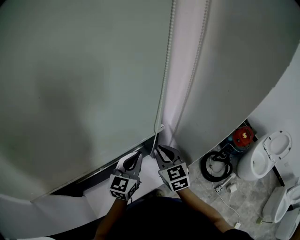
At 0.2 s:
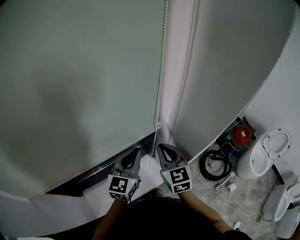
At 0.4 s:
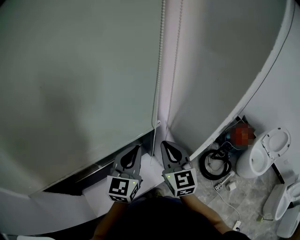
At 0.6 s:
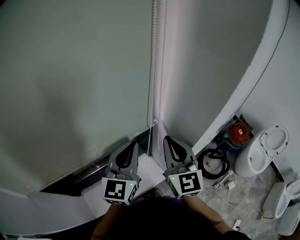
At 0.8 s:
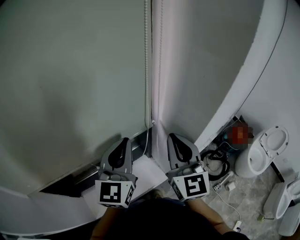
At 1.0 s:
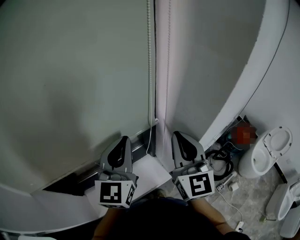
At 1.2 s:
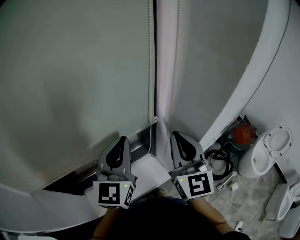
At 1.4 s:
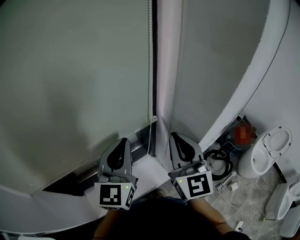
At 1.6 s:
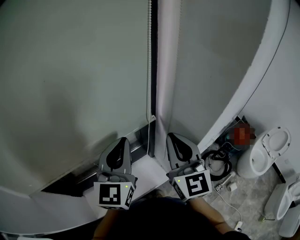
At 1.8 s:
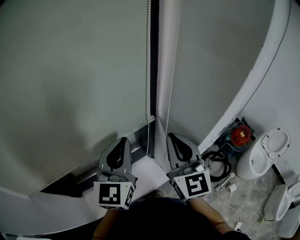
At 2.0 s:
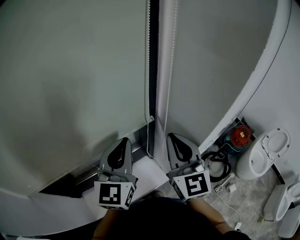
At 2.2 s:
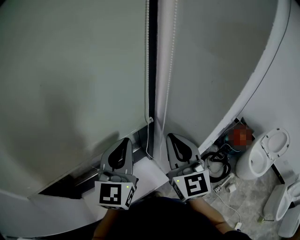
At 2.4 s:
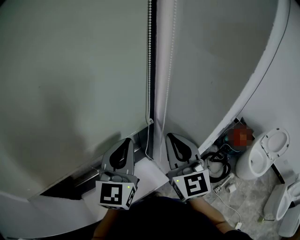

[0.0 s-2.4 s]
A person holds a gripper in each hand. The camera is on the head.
0.0 to 1.2 s: The grippers both shift upward by approximately 20 cm. The right gripper turns by approximately 30 degrees. Meanwhile the left gripper rotates about 20 degrees.
1.2 to 2.4 s: The grippers stay close to where they were, moving slightly.

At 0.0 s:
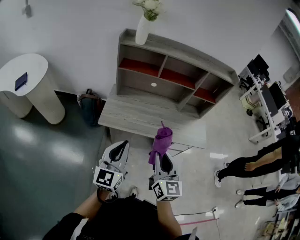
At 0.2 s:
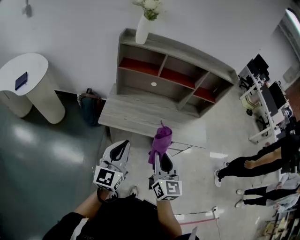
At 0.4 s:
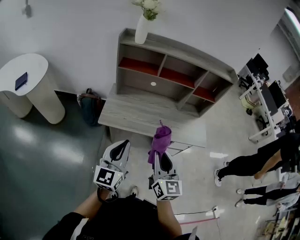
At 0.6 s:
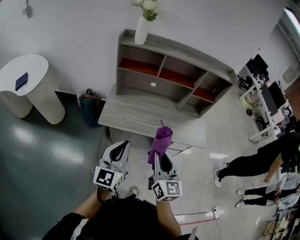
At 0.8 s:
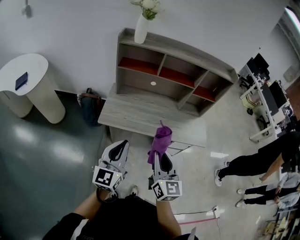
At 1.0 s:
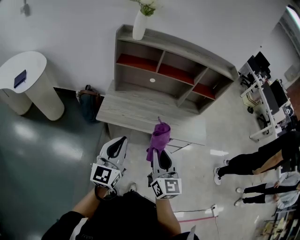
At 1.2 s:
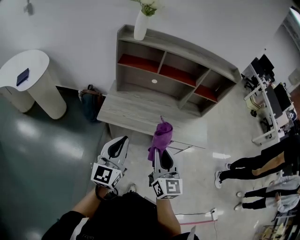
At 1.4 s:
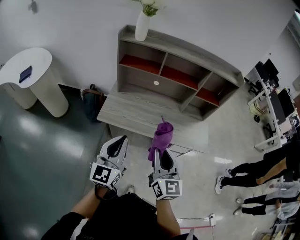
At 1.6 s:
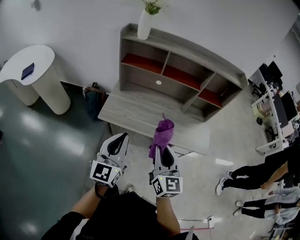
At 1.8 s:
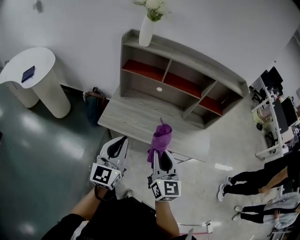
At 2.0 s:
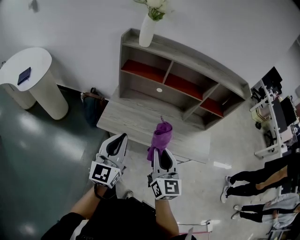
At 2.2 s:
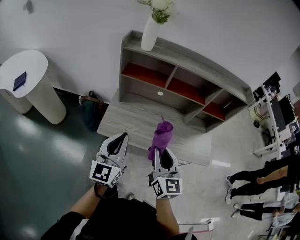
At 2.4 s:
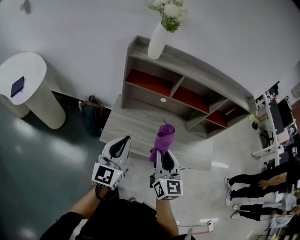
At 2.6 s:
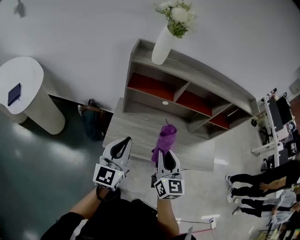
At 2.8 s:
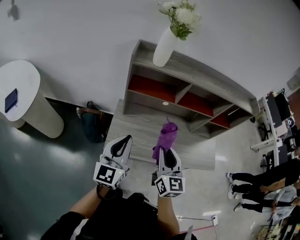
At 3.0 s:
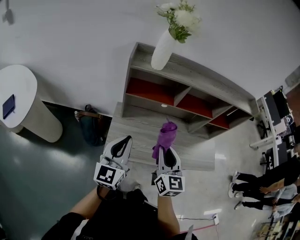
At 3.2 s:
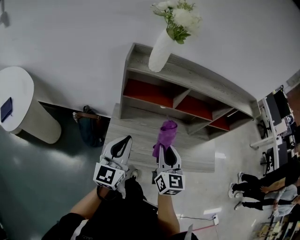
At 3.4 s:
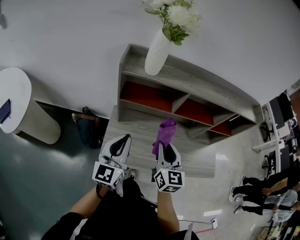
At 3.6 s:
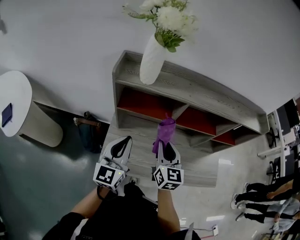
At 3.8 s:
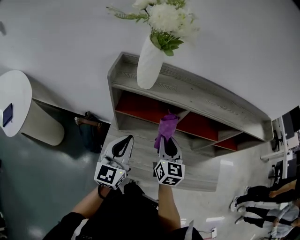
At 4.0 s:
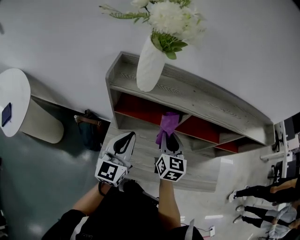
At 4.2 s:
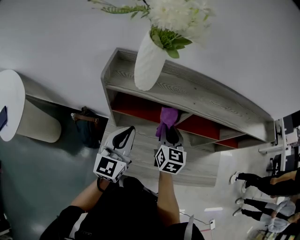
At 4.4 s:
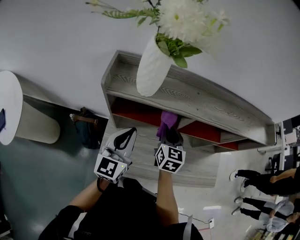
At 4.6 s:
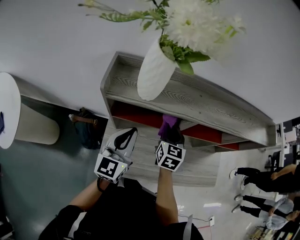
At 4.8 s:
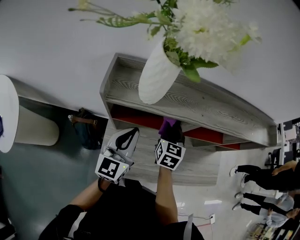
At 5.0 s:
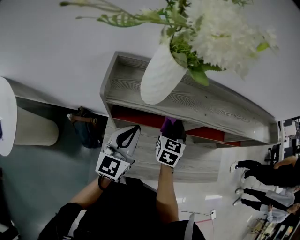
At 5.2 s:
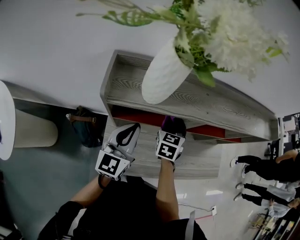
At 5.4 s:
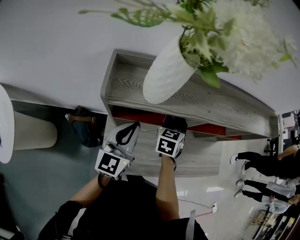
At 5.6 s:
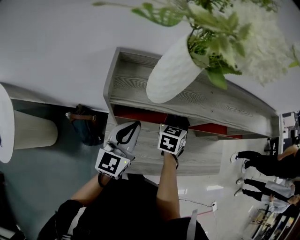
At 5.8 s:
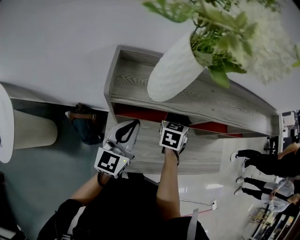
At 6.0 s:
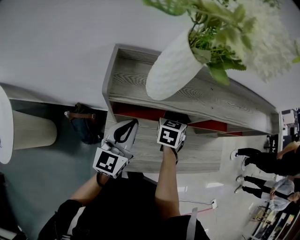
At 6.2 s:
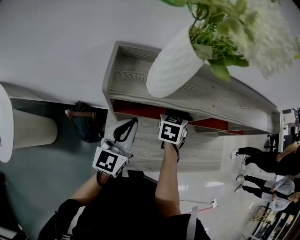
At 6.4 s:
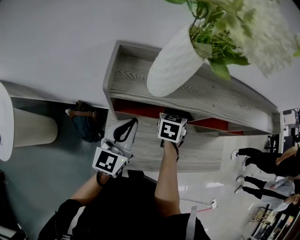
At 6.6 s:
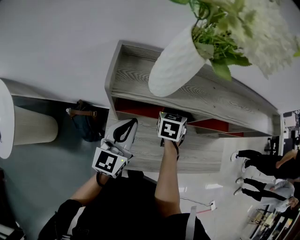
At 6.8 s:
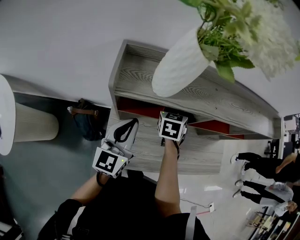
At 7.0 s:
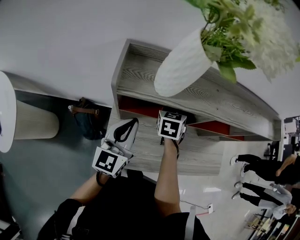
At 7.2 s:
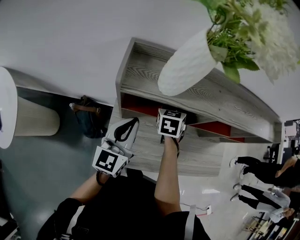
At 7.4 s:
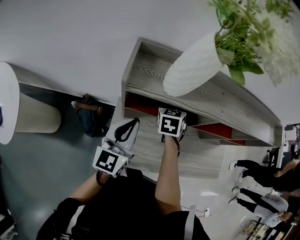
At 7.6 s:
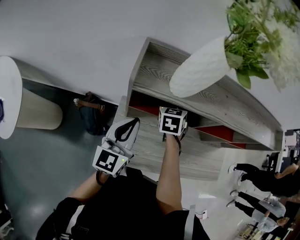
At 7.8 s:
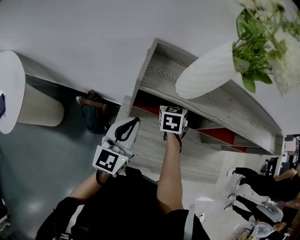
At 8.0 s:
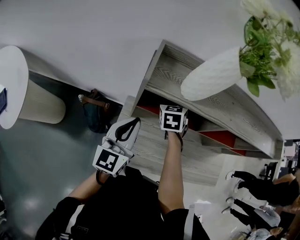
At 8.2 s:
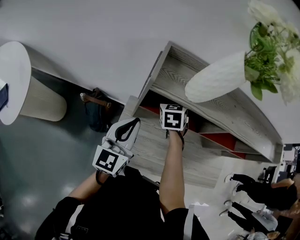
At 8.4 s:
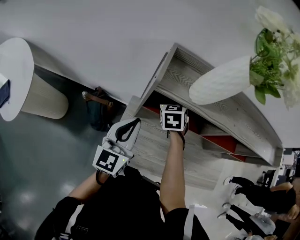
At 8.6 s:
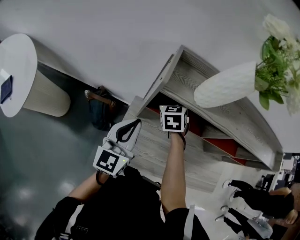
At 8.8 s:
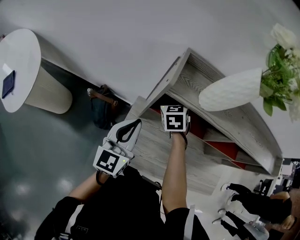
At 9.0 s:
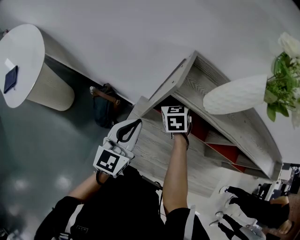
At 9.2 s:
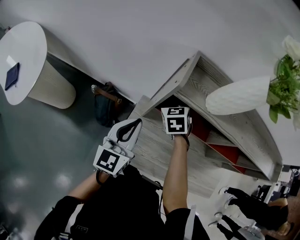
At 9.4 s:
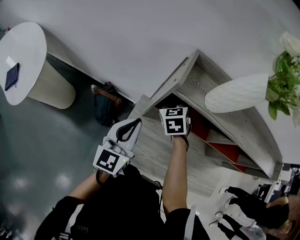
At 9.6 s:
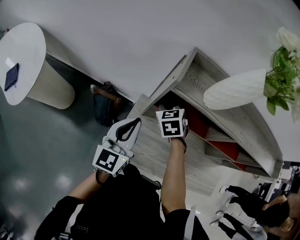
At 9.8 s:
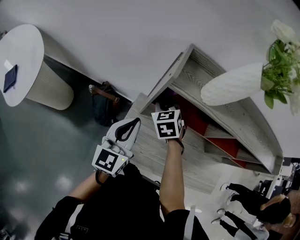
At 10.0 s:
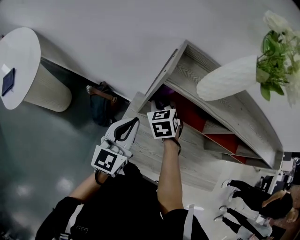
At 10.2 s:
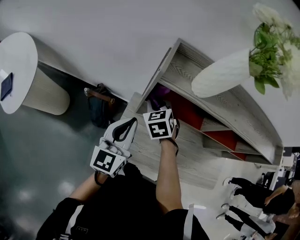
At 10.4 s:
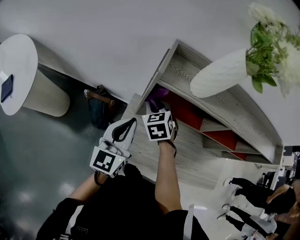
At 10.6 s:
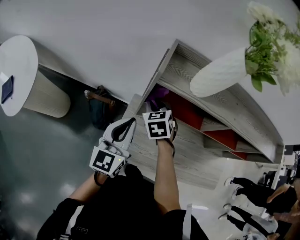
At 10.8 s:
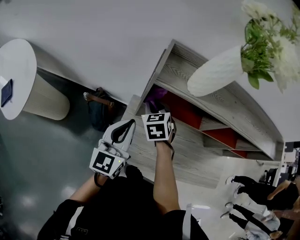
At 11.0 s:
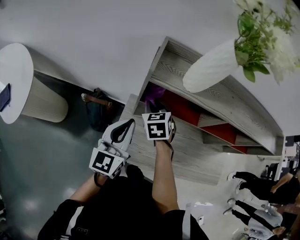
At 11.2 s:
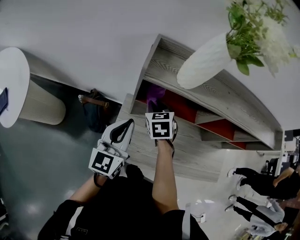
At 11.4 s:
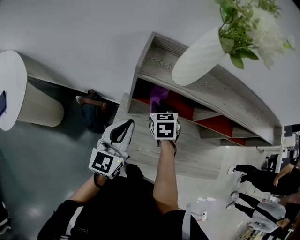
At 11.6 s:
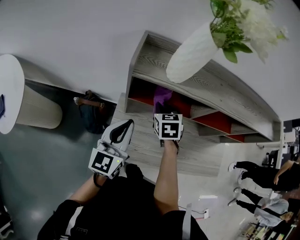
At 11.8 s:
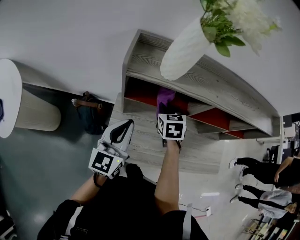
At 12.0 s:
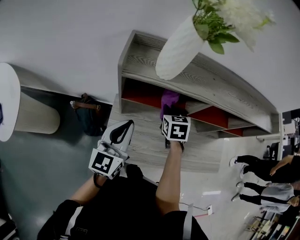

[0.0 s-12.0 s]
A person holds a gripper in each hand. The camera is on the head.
0.0 to 1.6 s: The left gripper moves approximately 5 cm, while the right gripper changes place by roughly 5 cm.
1.6 to 3.0 s: The grippers both shift forward and to the left by about 25 cm.
3.0 to 4.4 s: Both grippers move forward, some 25 cm.
4.4 to 6.0 s: The right gripper travels forward by approximately 5 cm, and swivels roughly 30 degrees. Meanwhile the left gripper changes place by approximately 5 cm.
6.0 to 7.6 s: The right gripper is displaced to the left by about 10 cm.
7.6 to 9.0 s: The left gripper heads to the left, covering roughly 5 cm. Meanwhile the right gripper travels to the left by some 15 cm, and changes its angle by some 30 degrees.
9.0 to 10.4 s: The right gripper is displaced backward by about 5 cm.
10.4 to 12.0 s: The right gripper goes about 20 cm to the right, and turns by some 30 degrees. Meanwhile the left gripper travels to the right by roughly 5 cm.

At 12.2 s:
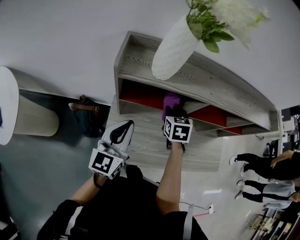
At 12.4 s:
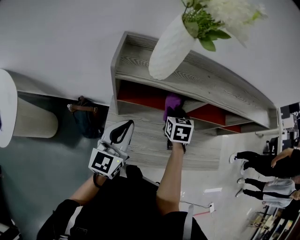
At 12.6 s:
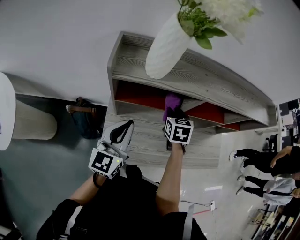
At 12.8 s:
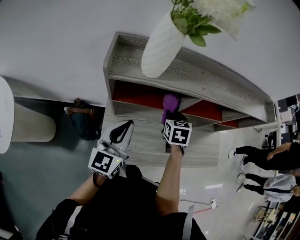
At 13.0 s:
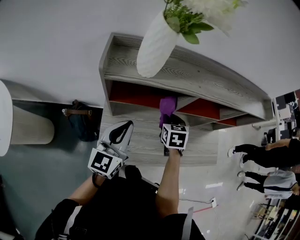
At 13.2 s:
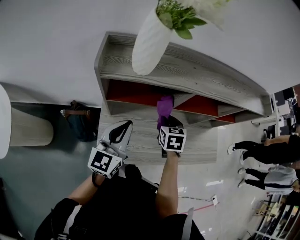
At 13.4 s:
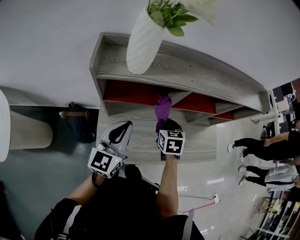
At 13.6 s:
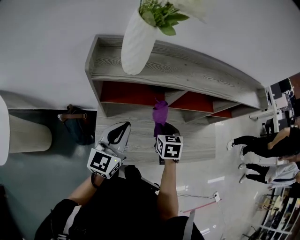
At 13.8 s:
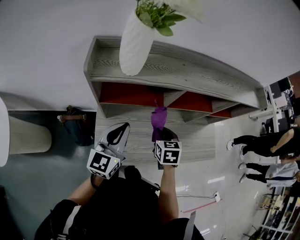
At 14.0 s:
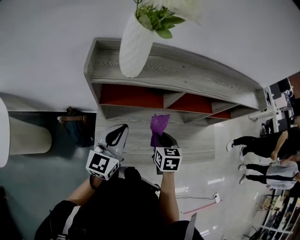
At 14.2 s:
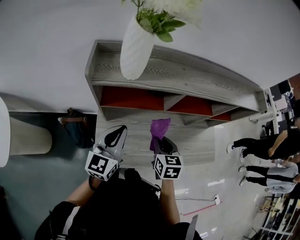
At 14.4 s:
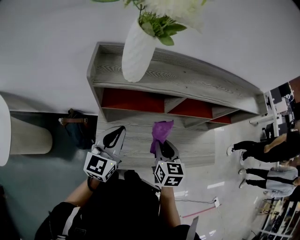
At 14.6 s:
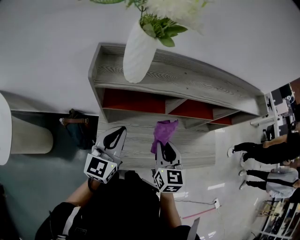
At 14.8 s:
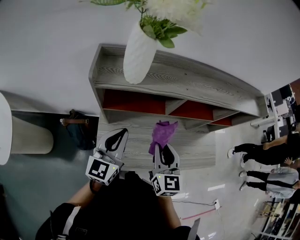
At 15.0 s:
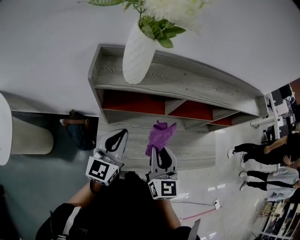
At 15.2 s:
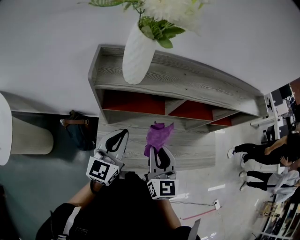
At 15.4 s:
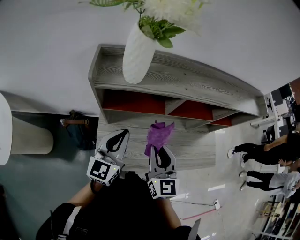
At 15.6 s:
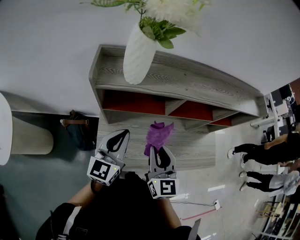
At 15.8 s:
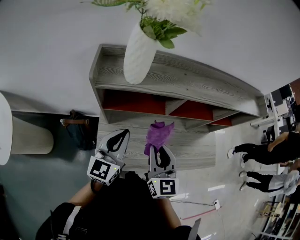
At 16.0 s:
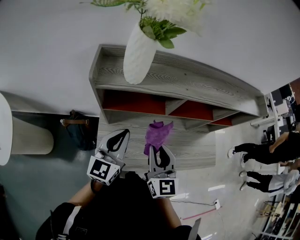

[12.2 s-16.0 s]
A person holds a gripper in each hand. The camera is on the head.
12.2 to 13.4 s: The right gripper goes roughly 10 cm to the right and backward.
13.4 to 14.8 s: The right gripper travels upward and backward by about 15 cm, and tilts its fingers roughly 30 degrees upward.
14.8 to 16.0 s: The grippers stay close to where they were, moving slightly.

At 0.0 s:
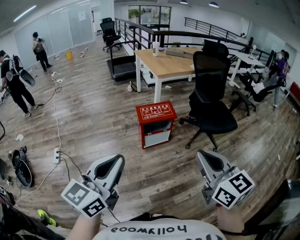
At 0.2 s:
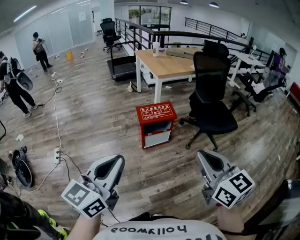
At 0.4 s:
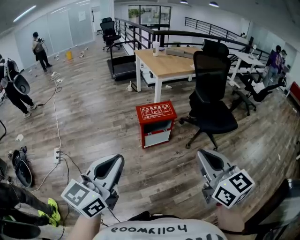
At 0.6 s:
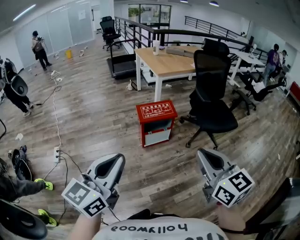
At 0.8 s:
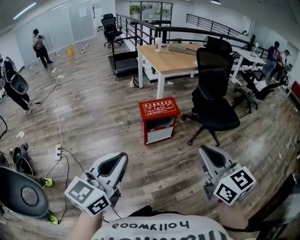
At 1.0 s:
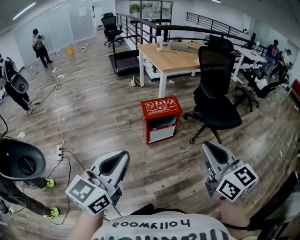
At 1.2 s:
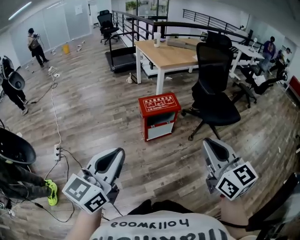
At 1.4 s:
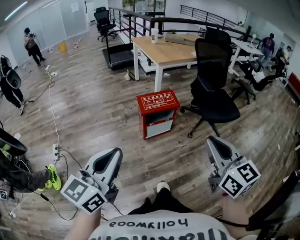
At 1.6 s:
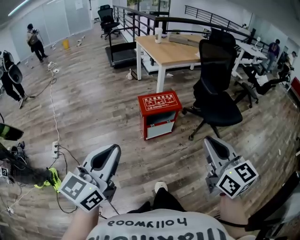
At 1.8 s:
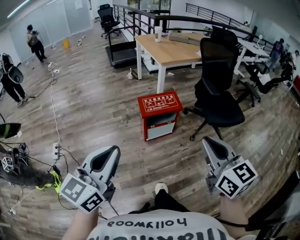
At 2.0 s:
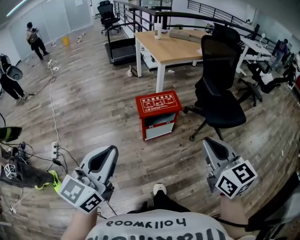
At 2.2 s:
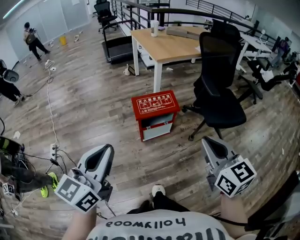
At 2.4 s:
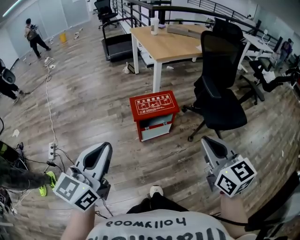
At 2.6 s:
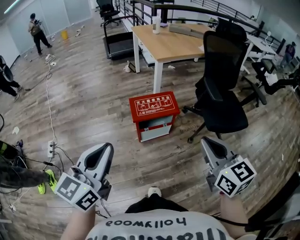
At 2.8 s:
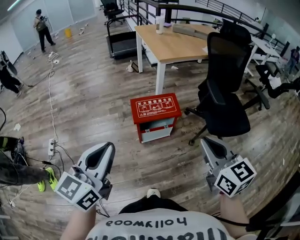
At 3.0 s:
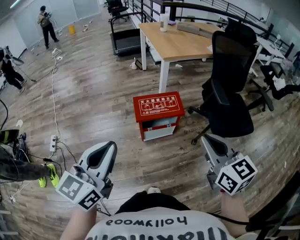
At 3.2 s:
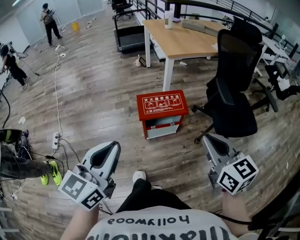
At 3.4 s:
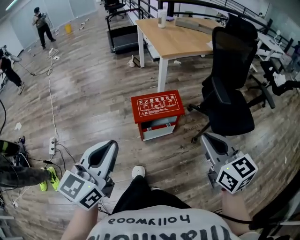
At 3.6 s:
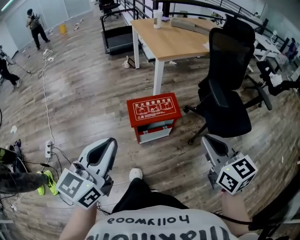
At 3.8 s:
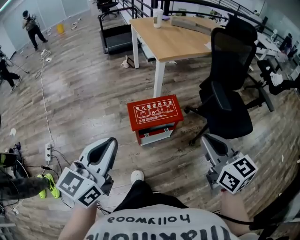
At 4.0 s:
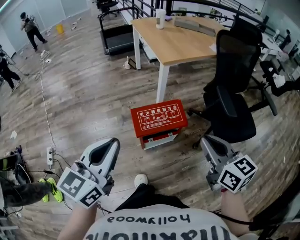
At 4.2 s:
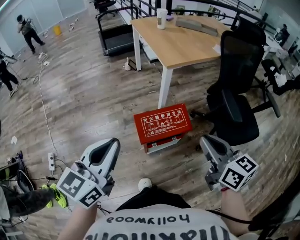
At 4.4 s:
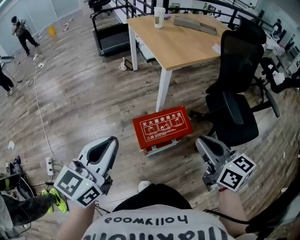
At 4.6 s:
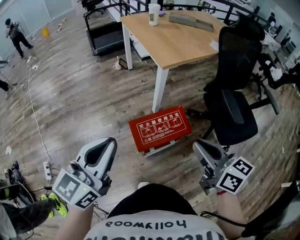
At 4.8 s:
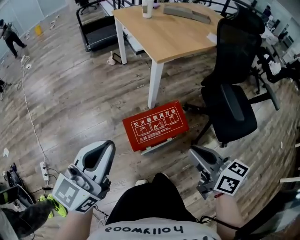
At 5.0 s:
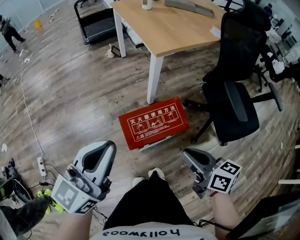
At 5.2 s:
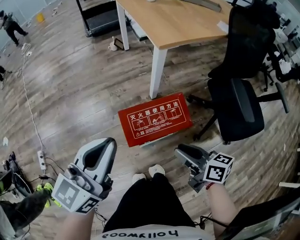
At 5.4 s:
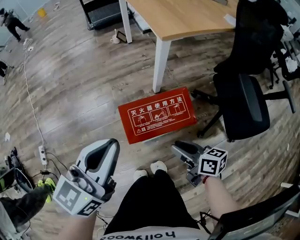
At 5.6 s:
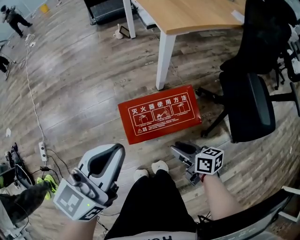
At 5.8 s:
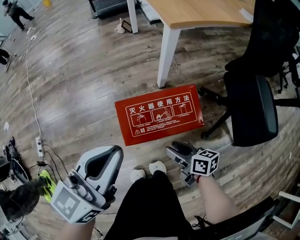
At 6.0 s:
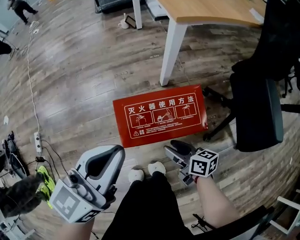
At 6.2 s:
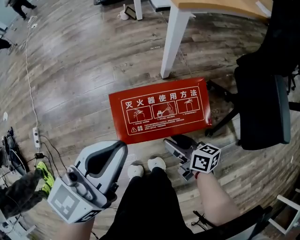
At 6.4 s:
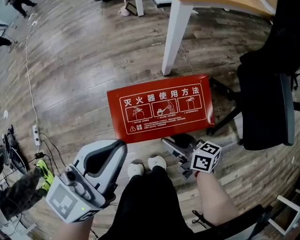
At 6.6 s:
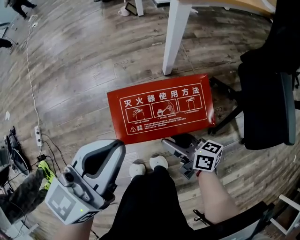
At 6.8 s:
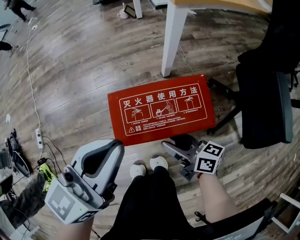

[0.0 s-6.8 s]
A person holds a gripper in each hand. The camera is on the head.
0.0 to 1.4 s: The left gripper ends up roughly 5 cm from where it was. Meanwhile the right gripper shifts by roughly 5 cm.
1.4 to 2.8 s: Both grippers move forward, about 20 cm.
2.8 to 4.0 s: The grippers both shift forward by approximately 15 cm.
4.0 to 5.4 s: The right gripper is displaced downward and forward by approximately 30 cm, rotates roughly 40 degrees, and opens its fingers; the left gripper travels forward and downward by approximately 20 cm.
5.4 to 6.8 s: The right gripper heads downward, covering about 10 cm. The left gripper shifts approximately 10 cm downward and to the right.
